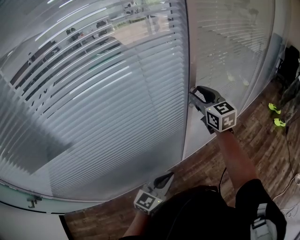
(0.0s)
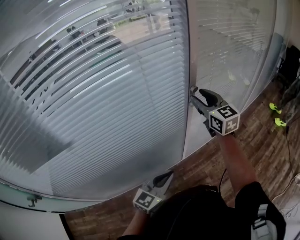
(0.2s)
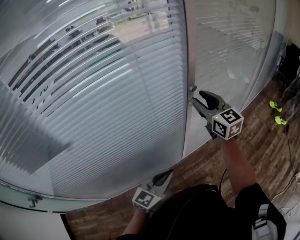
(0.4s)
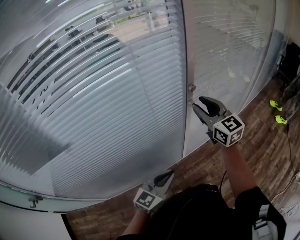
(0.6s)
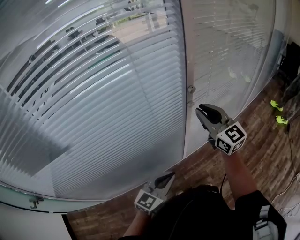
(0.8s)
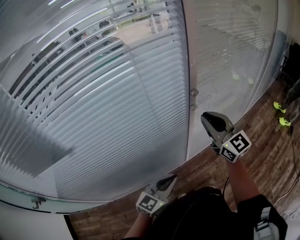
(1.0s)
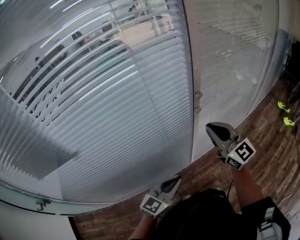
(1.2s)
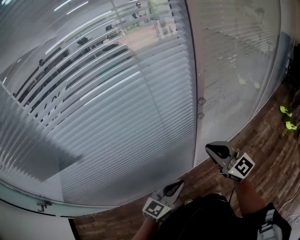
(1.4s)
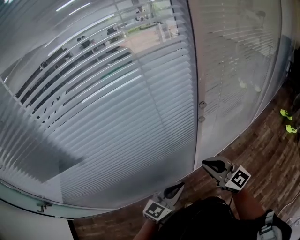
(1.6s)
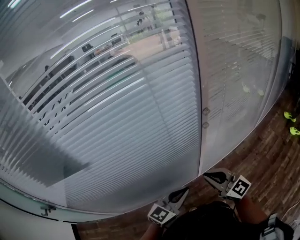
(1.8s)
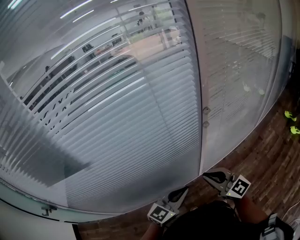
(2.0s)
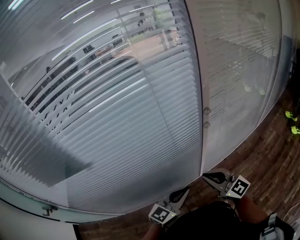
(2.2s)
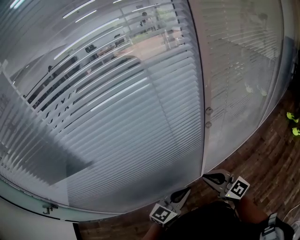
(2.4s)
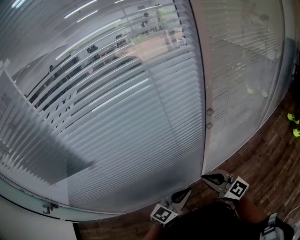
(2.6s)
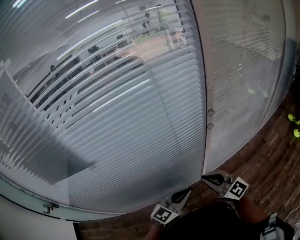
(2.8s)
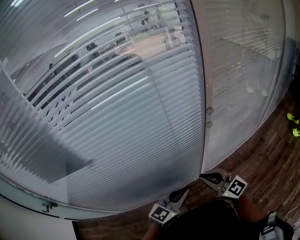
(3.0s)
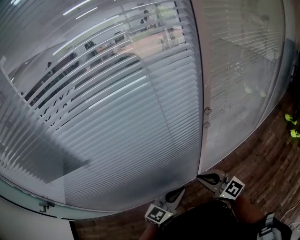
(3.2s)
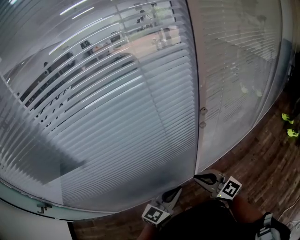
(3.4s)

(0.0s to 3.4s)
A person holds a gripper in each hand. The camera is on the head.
0.0s - 1.6s: The right gripper is displaced backward and downward by roughly 25 cm, turns by about 30 degrees, and closes.
1.6s - 3.4s: The right gripper ends up roughly 5 cm from where it was.

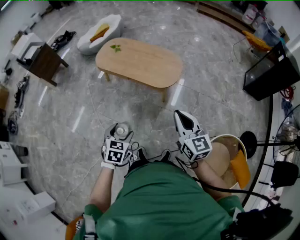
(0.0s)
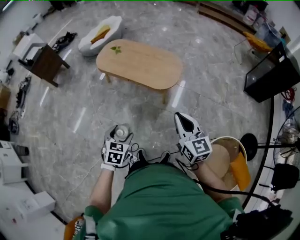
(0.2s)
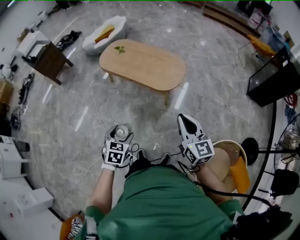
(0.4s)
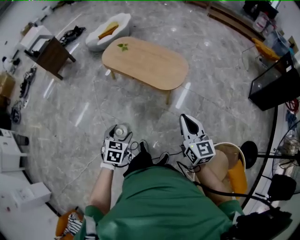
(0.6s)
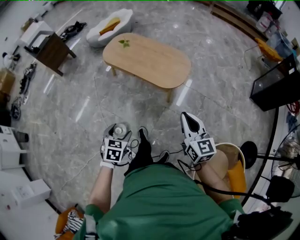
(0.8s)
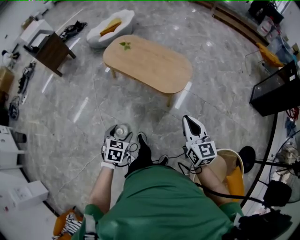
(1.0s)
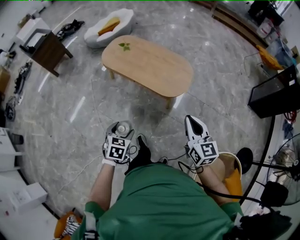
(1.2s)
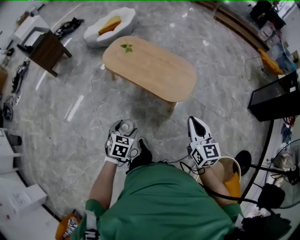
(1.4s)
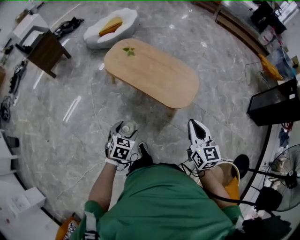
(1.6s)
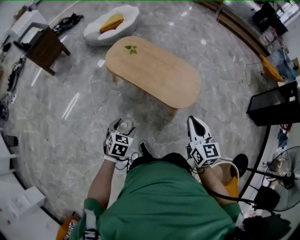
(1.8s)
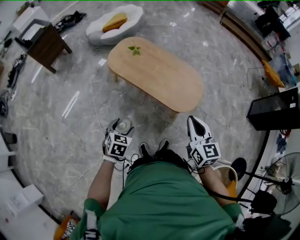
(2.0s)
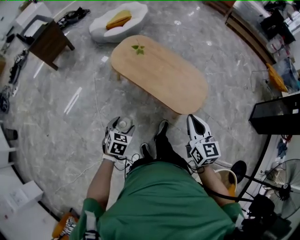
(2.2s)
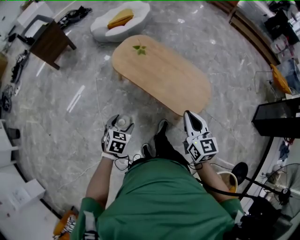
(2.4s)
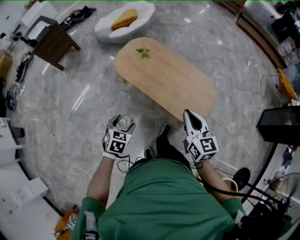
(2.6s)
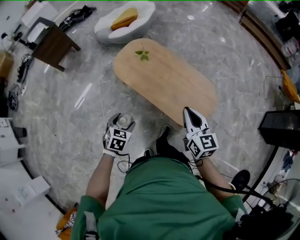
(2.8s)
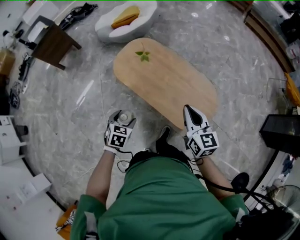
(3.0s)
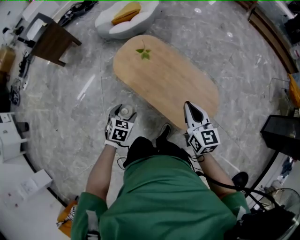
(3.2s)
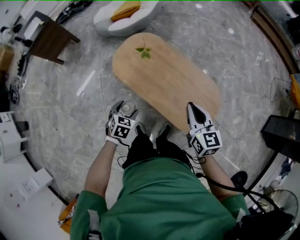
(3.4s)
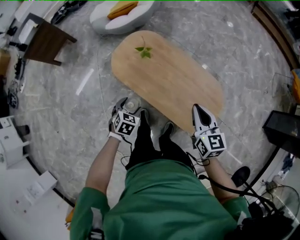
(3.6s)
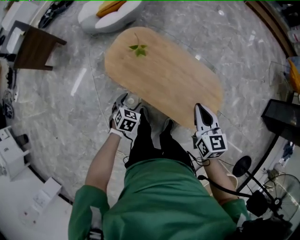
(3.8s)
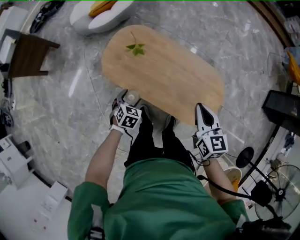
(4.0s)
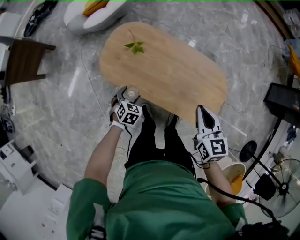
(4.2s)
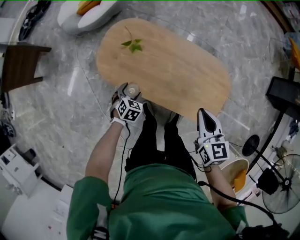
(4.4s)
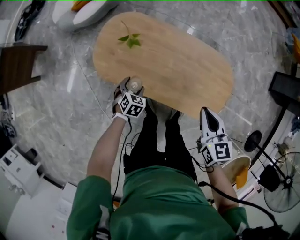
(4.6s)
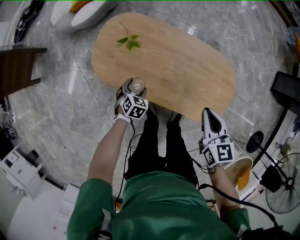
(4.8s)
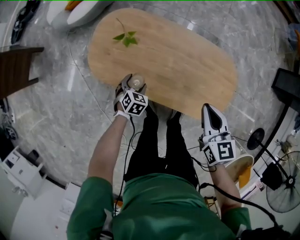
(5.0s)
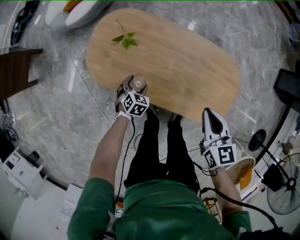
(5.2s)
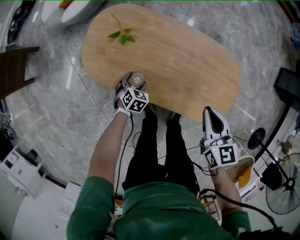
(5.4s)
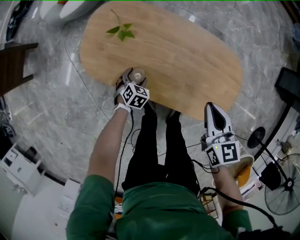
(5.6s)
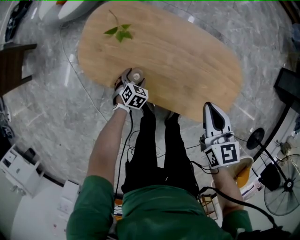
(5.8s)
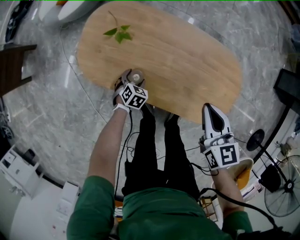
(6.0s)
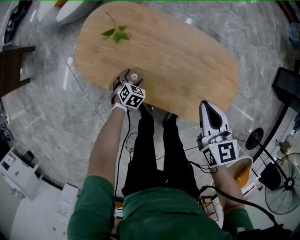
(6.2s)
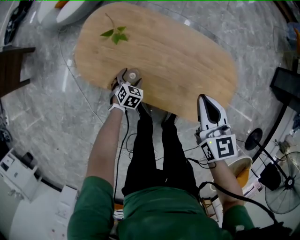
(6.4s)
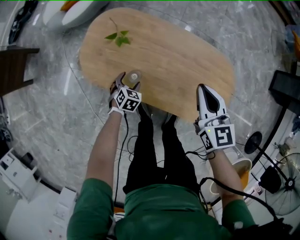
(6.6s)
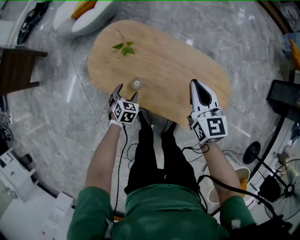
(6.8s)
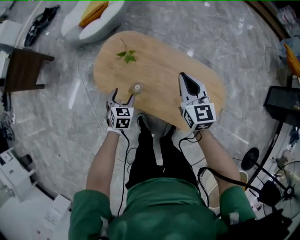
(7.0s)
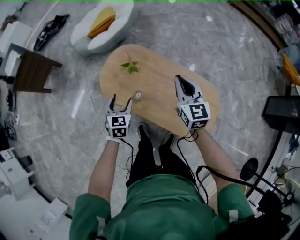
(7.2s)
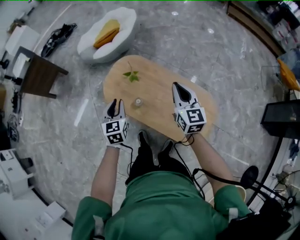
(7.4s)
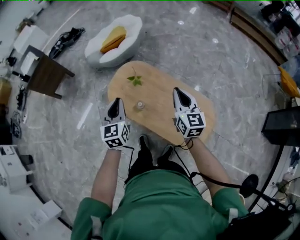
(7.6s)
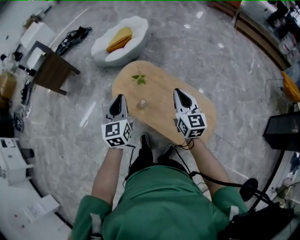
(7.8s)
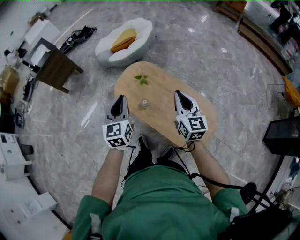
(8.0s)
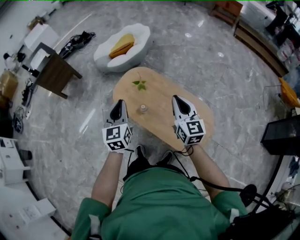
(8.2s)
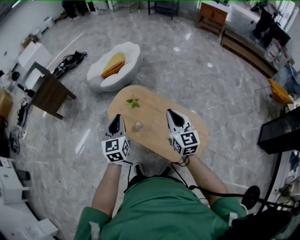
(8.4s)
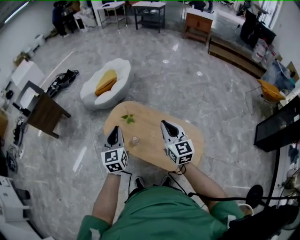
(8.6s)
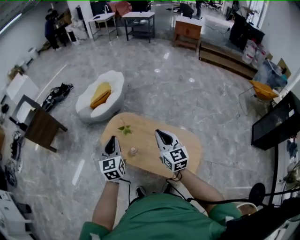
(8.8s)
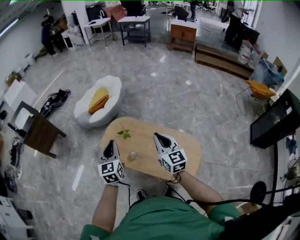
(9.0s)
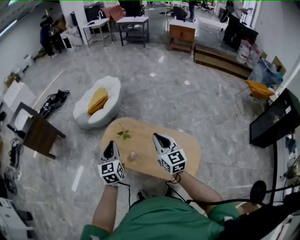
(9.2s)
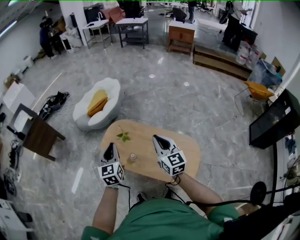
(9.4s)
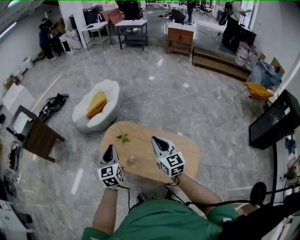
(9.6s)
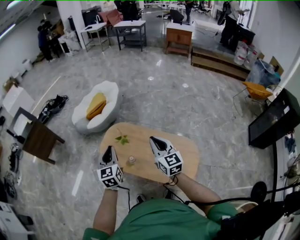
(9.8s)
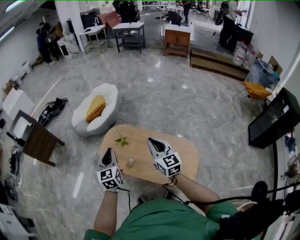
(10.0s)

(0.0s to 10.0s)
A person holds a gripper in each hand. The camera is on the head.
0.0s - 1.4s: Both grippers travel together forward, approximately 20 cm.
1.4s - 2.8s: The grippers both shift forward by approximately 35 cm.
2.8s - 4.2s: Both grippers move forward and downward, roughly 35 cm. The right gripper turns by approximately 20 degrees.
4.2s - 5.8s: Both grippers travel together downward, approximately 20 cm.
5.8s - 7.2s: The left gripper travels upward by some 40 cm, and changes its angle by some 40 degrees. Meanwhile the right gripper goes approximately 20 cm upward, and swivels roughly 20 degrees.
7.2s - 8.6s: The right gripper moves upward and backward, roughly 25 cm, while the left gripper shifts about 30 cm upward, swivels approximately 30 degrees, and closes its fingers.
8.6s - 10.0s: The grippers stay close to where they were, moving slightly.

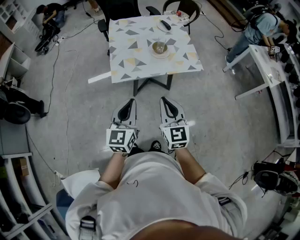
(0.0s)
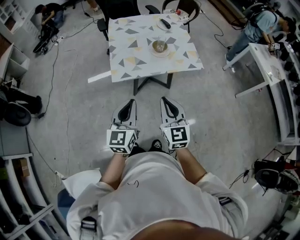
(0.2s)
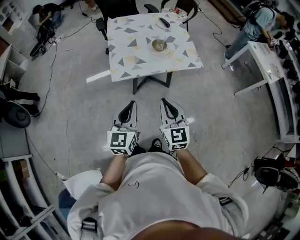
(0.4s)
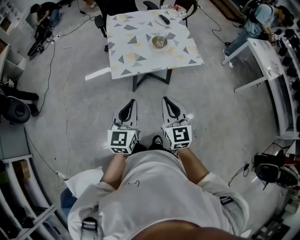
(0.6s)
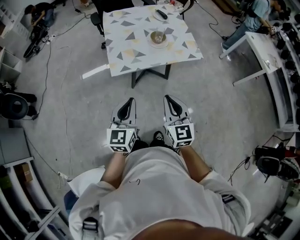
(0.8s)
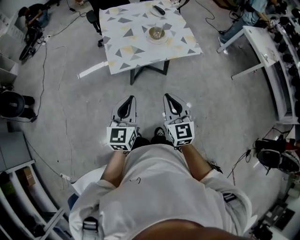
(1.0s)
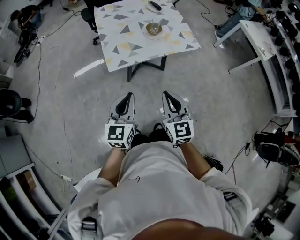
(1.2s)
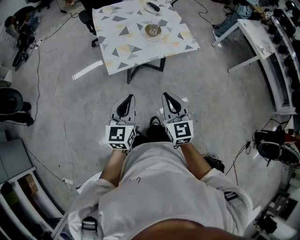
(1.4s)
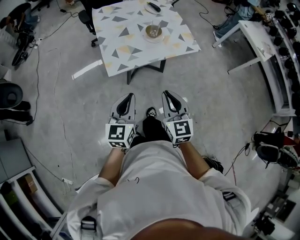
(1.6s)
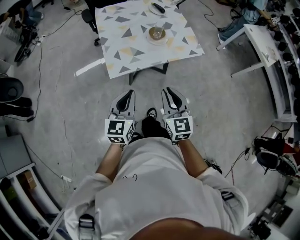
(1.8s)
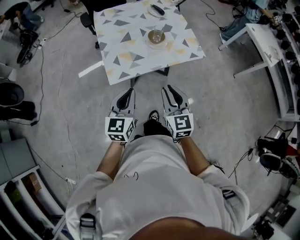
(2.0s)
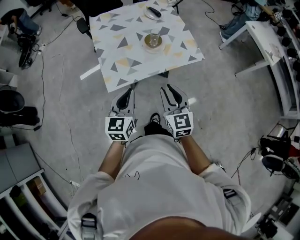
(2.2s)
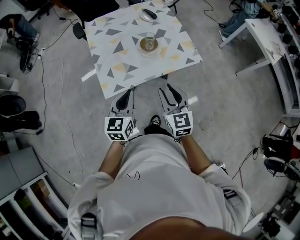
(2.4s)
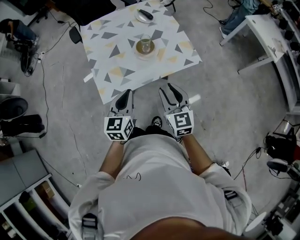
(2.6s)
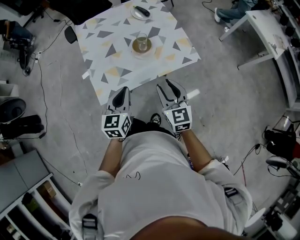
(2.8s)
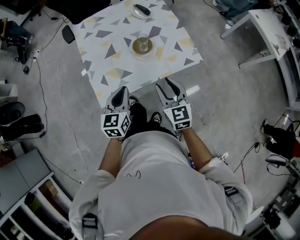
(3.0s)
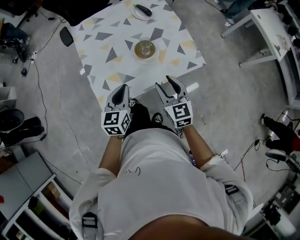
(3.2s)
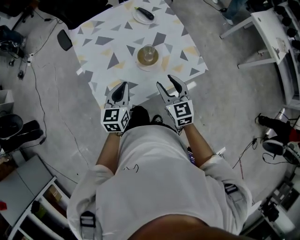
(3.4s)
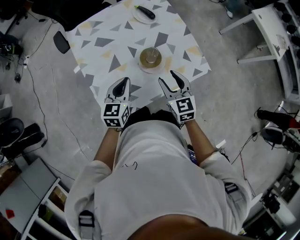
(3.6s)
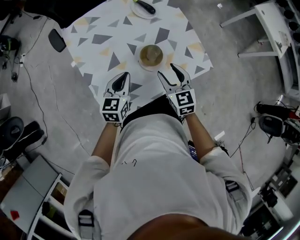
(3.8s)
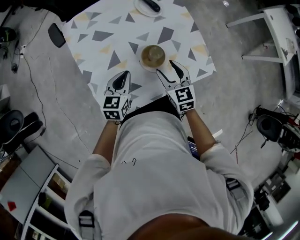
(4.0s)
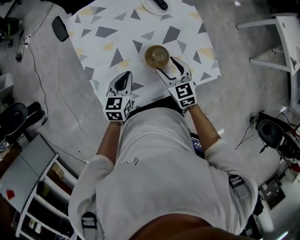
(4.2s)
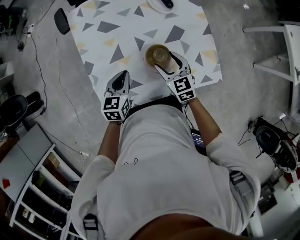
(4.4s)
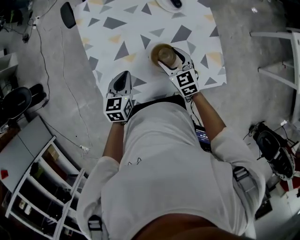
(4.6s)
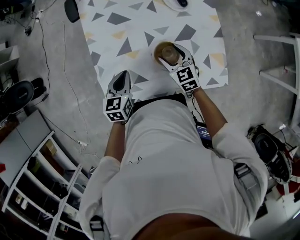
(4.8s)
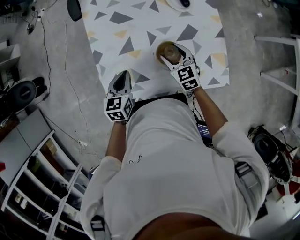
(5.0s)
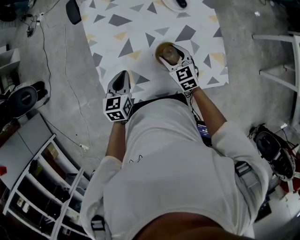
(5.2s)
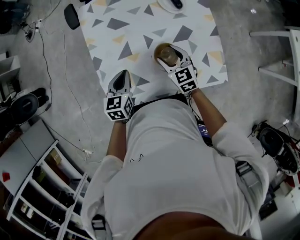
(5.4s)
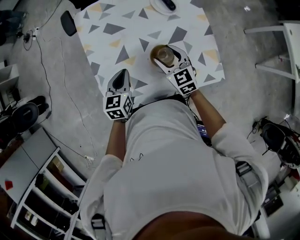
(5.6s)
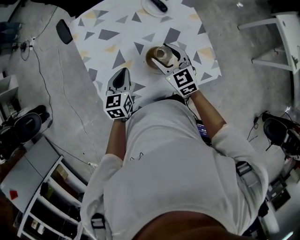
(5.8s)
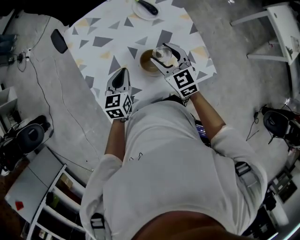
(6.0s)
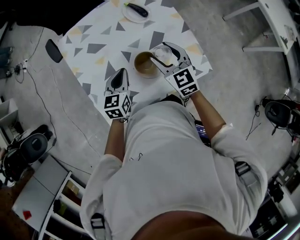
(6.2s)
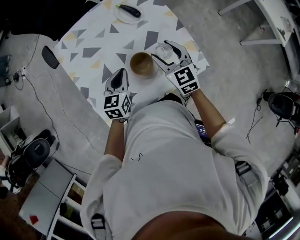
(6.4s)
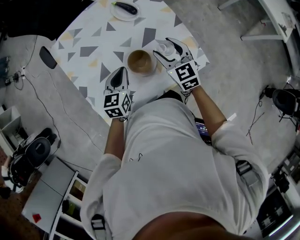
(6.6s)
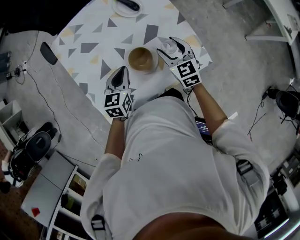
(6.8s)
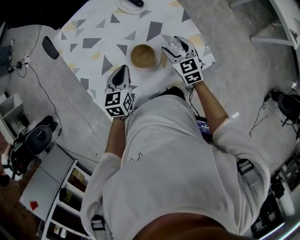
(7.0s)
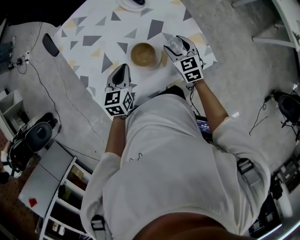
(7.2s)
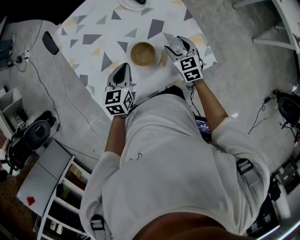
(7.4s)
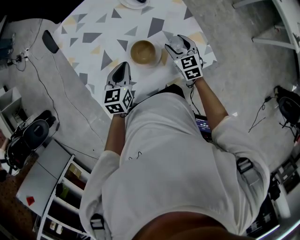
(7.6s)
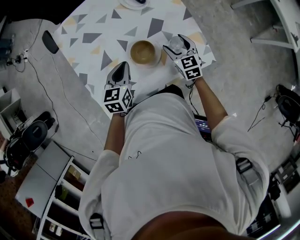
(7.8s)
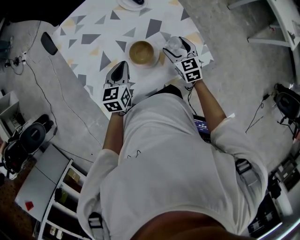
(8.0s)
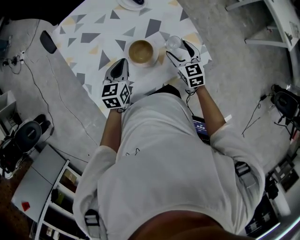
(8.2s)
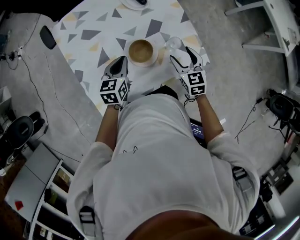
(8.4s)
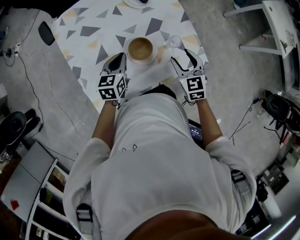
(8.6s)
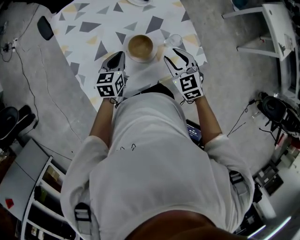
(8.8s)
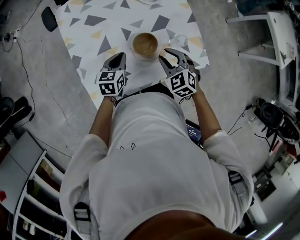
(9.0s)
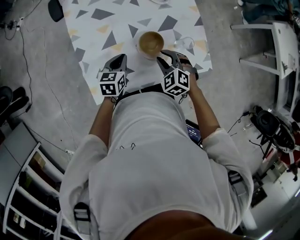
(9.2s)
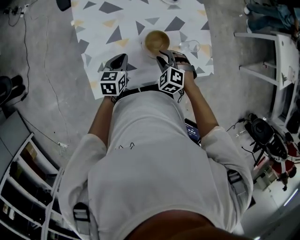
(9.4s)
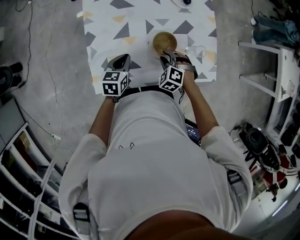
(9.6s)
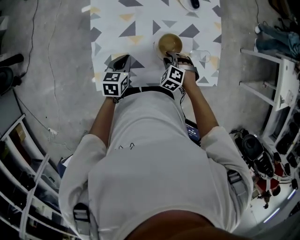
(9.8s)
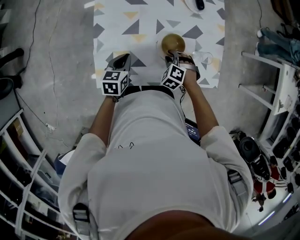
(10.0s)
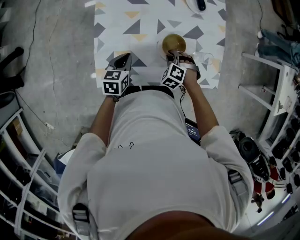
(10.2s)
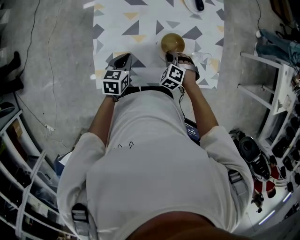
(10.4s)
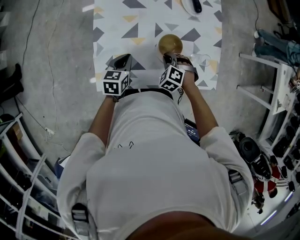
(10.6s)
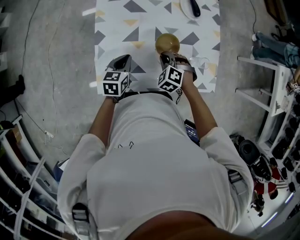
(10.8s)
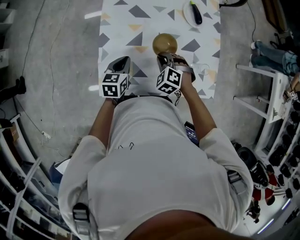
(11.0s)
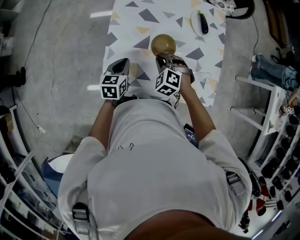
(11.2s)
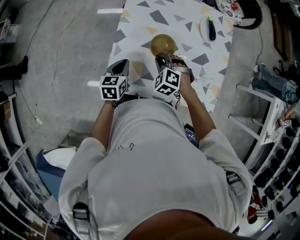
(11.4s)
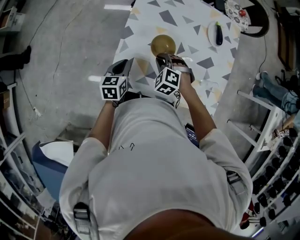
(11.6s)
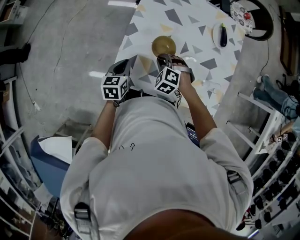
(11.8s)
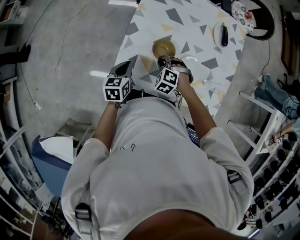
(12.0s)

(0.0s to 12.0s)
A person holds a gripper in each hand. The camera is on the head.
0.0s - 1.6s: The left gripper is displaced to the left and downward by some 10 cm. The right gripper shifts by roughly 5 cm.
1.6s - 3.0s: The two grippers go approximately 25 cm forward. The right gripper opens.
3.0s - 4.4s: The two grippers go approximately 25 cm forward and downward. The right gripper rotates some 20 degrees, and opens up.
4.4s - 6.0s: The left gripper moves some 5 cm. Meanwhile the right gripper is displaced upward by approximately 10 cm.
6.0s - 7.6s: The right gripper moves downward and to the right, approximately 20 cm, while the left gripper shifts about 5 cm to the right.
7.6s - 9.0s: The left gripper changes place by approximately 5 cm; the right gripper moves backward, to the left and upward, some 15 cm, rotates about 30 degrees, and closes.
9.0s - 10.4s: The right gripper moves downward and to the left, some 15 cm, and changes its angle by approximately 40 degrees; the left gripper goes approximately 10 cm to the left and backward.
10.4s - 12.0s: The right gripper goes upward and returns, some 10 cm each way, and turns by approximately 20 degrees. Meanwhile the left gripper ends up roughly 15 cm from where it was, and turns by approximately 20 degrees.
